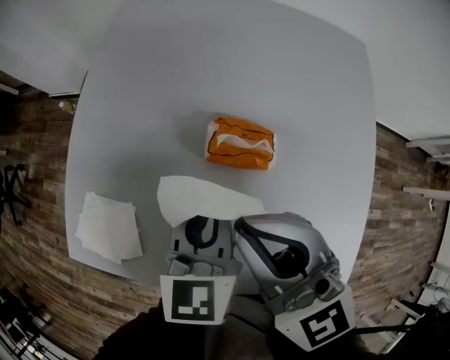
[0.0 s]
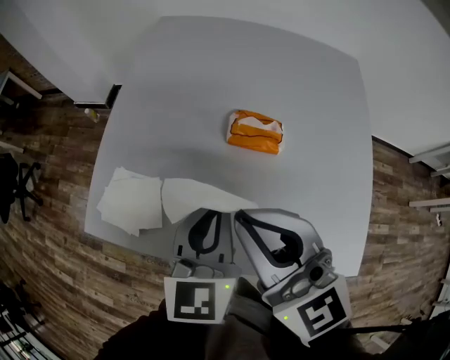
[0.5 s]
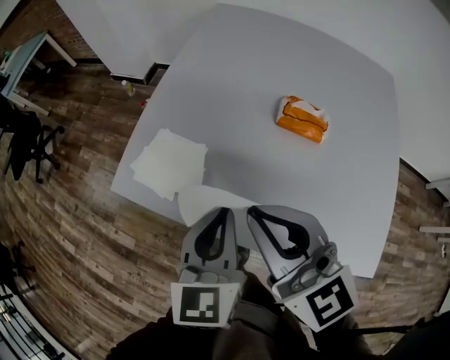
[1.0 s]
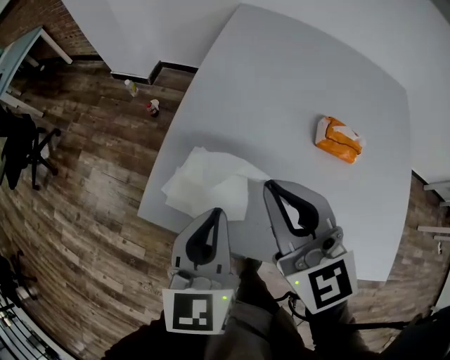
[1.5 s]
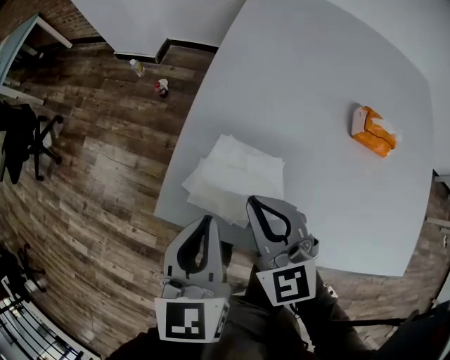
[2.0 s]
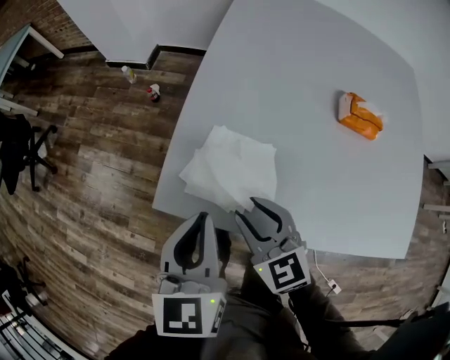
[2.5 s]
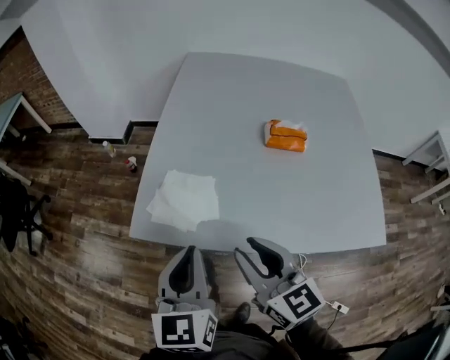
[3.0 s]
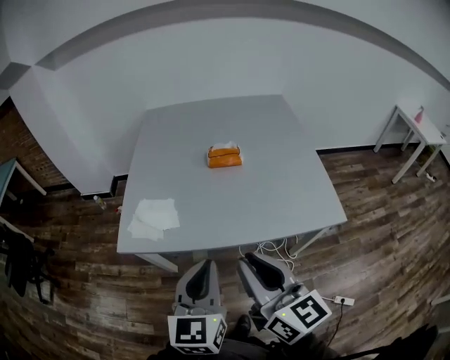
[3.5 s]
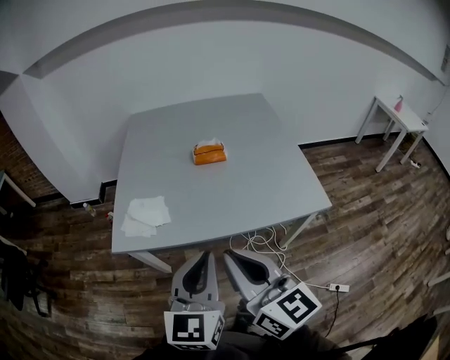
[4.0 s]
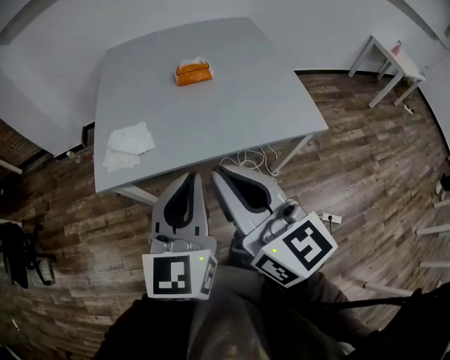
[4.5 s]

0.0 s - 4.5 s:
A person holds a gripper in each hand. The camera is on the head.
0.0 s - 2.0 s: The right gripper travels to the left and downward by approximately 35 cm. The left gripper is displaced to the left by about 40 cm.
2.0 s - 4.5 s: The right gripper ends up some 50 cm from where it was, changes its angle by approximately 50 degrees, and opens and closes again, while the left gripper shifts by some 40 cm, and turns by roughly 40 degrees.

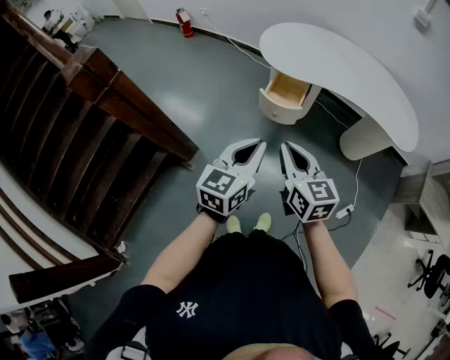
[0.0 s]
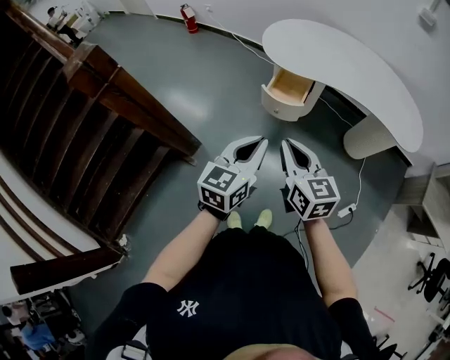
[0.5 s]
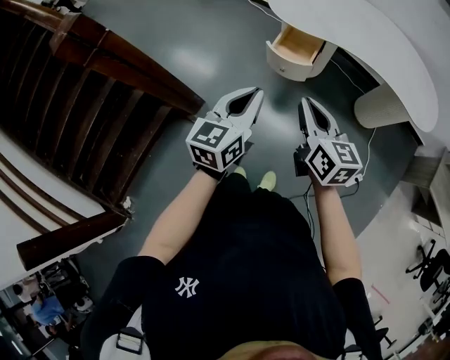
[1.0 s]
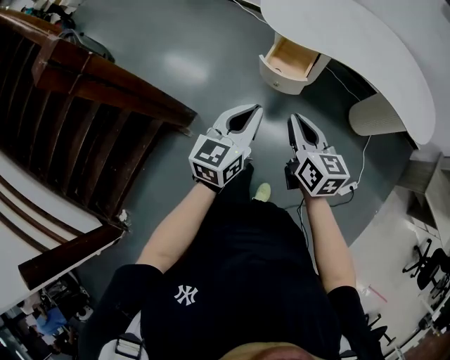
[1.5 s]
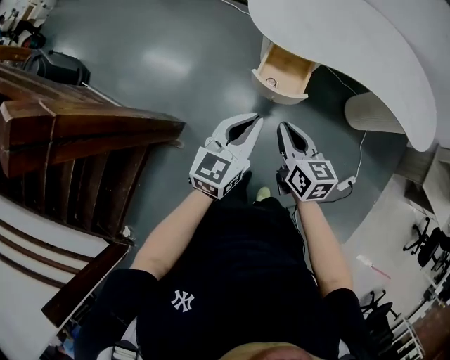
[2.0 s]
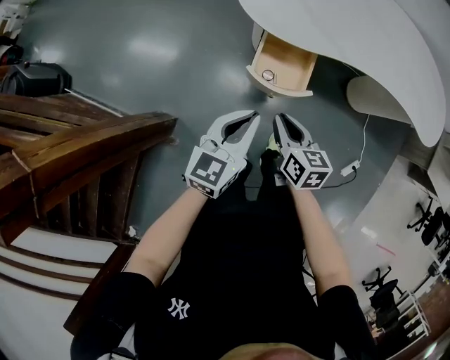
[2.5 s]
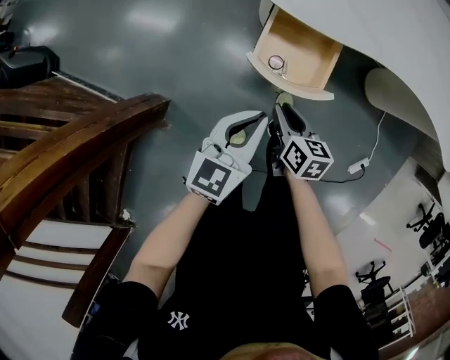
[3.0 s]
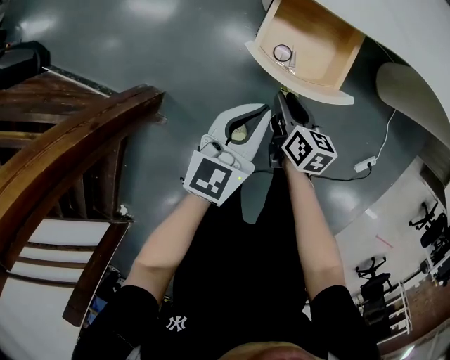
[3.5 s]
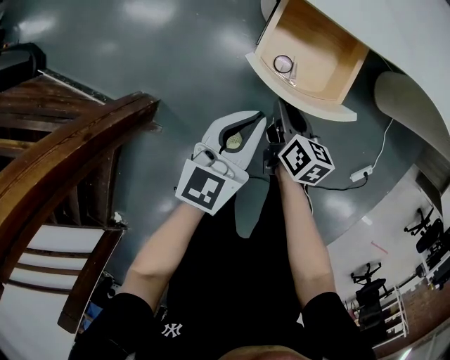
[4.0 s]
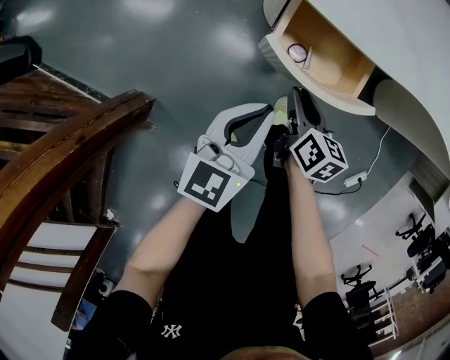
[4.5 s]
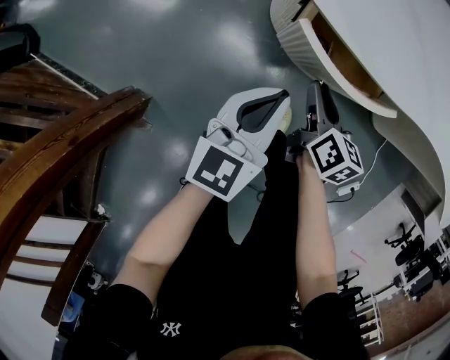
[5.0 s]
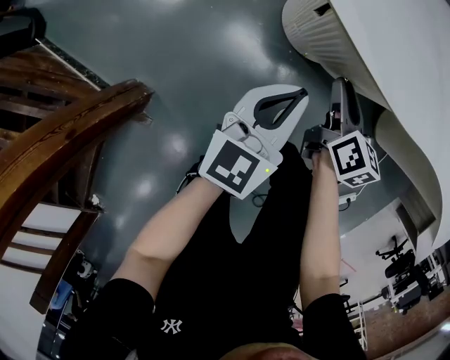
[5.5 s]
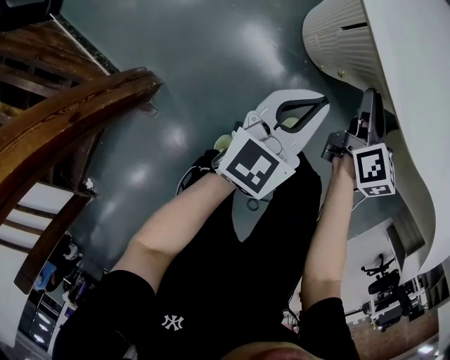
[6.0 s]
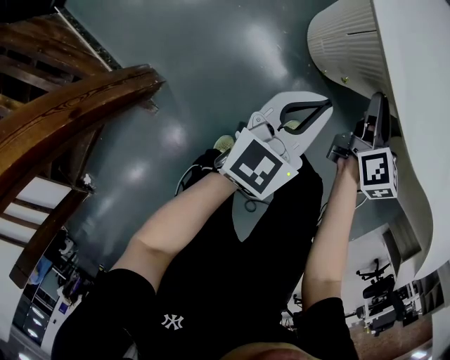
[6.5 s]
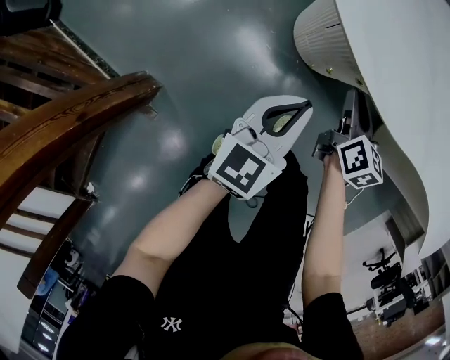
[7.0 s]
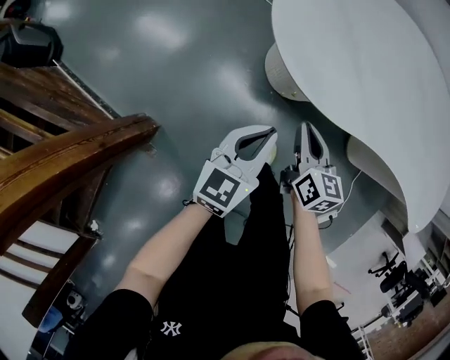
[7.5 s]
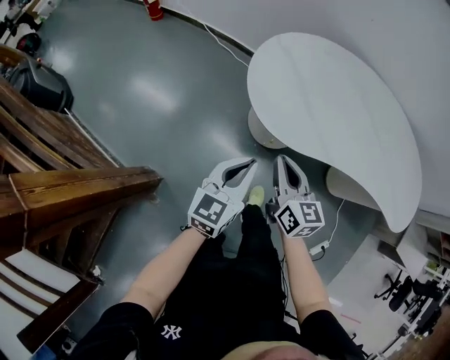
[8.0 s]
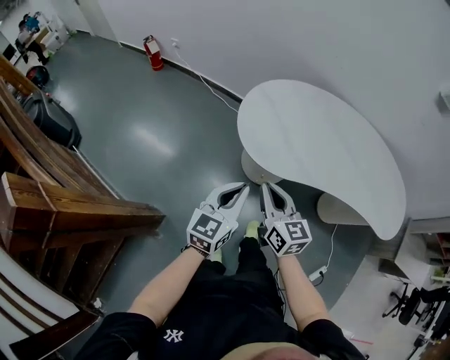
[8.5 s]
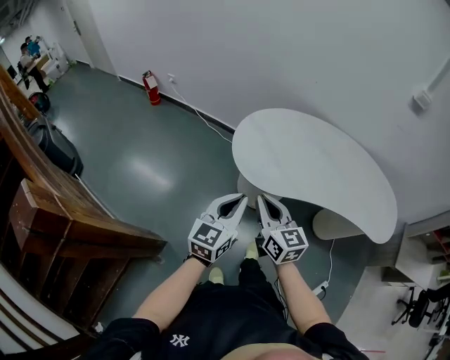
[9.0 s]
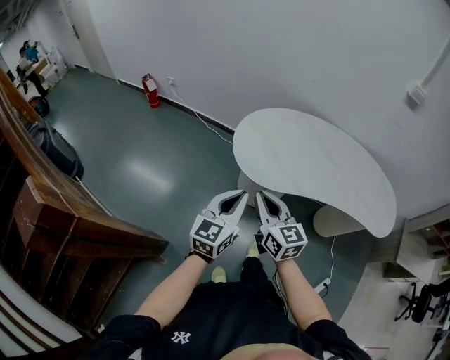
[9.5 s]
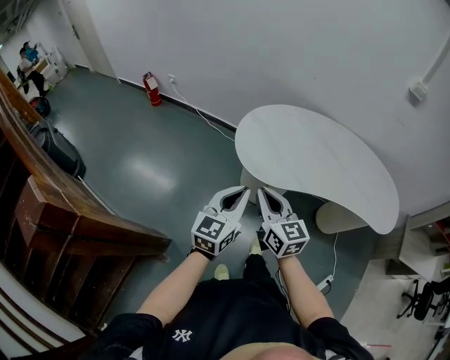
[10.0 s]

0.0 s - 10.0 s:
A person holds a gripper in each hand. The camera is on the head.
0.0 s - 2.0 s: Both grippers move forward and downward, approximately 25 cm.
2.0 s - 4.0 s: The right gripper heads downward, covering about 35 cm, swivels roughly 30 degrees, and opens up, while the left gripper heads downward and forward, covering roughly 35 cm.
4.0 s - 6.0 s: Both grippers travel together forward, approximately 20 cm.
6.0 s - 8.0 s: The right gripper shifts approximately 35 cm upward and backward, turns by some 20 degrees, and closes up, while the left gripper heads upward, covering some 25 cm.
8.0 s - 10.0 s: The grippers both shift upward and backward by some 20 cm.

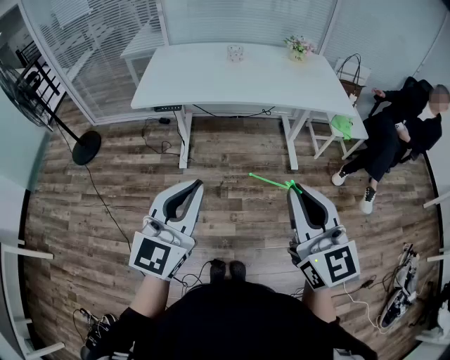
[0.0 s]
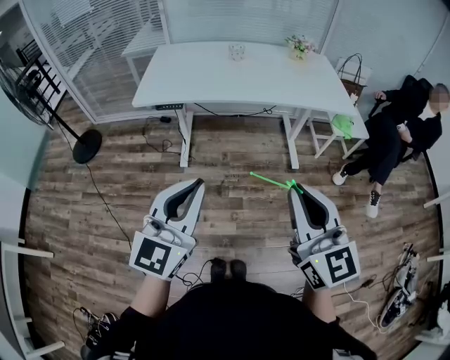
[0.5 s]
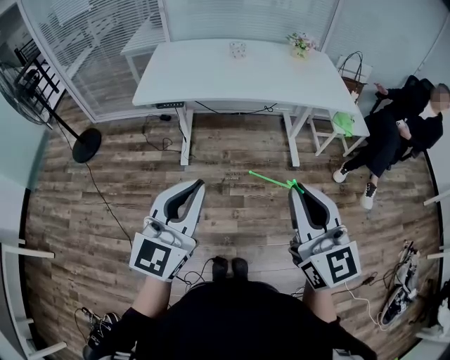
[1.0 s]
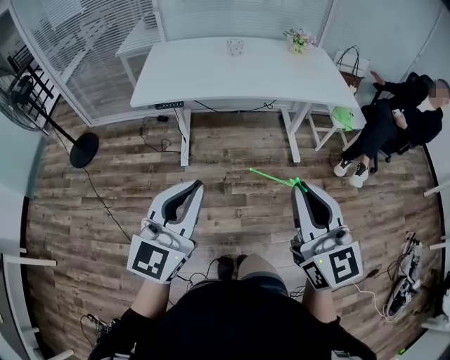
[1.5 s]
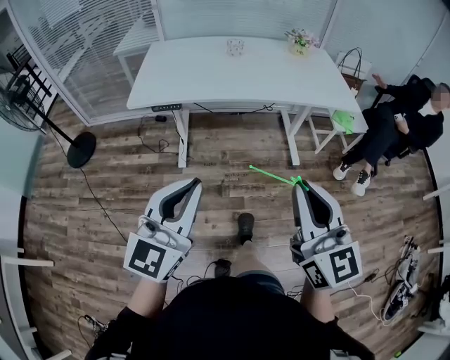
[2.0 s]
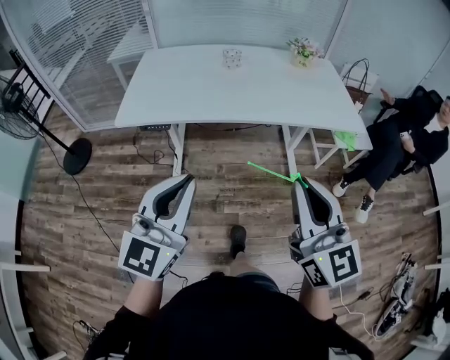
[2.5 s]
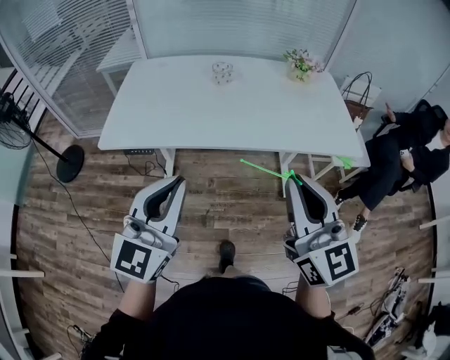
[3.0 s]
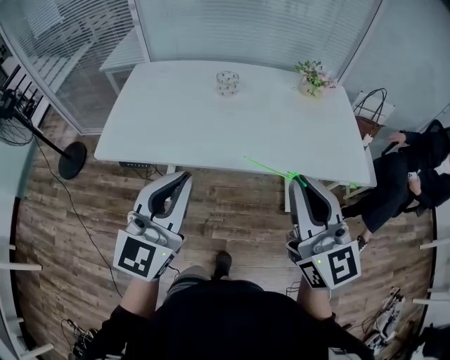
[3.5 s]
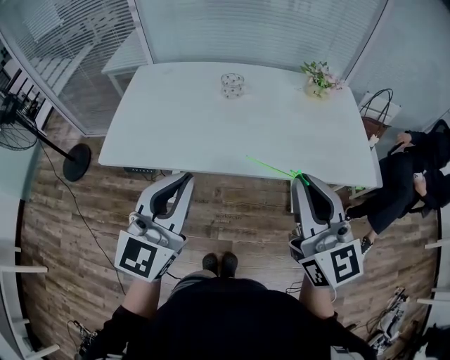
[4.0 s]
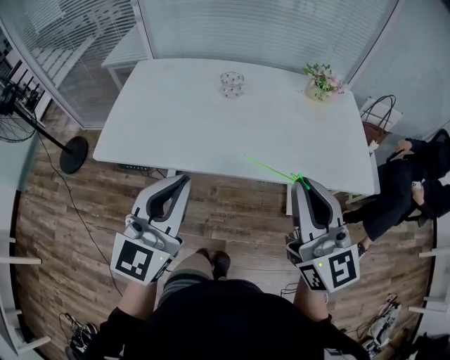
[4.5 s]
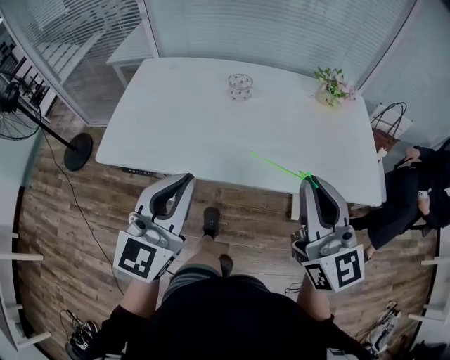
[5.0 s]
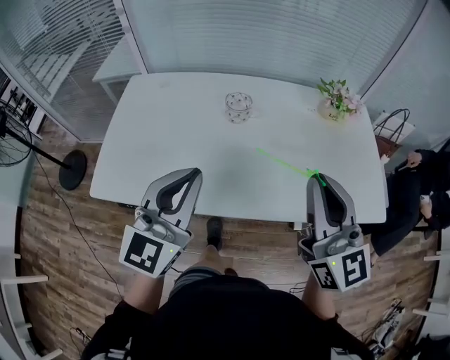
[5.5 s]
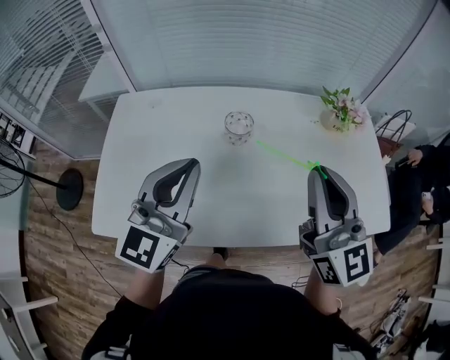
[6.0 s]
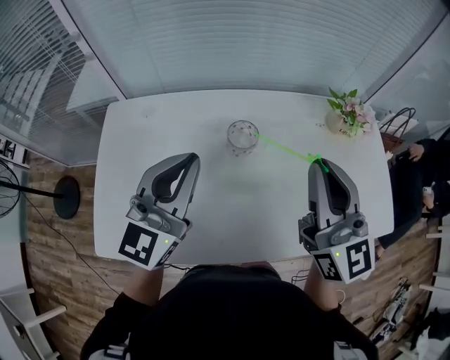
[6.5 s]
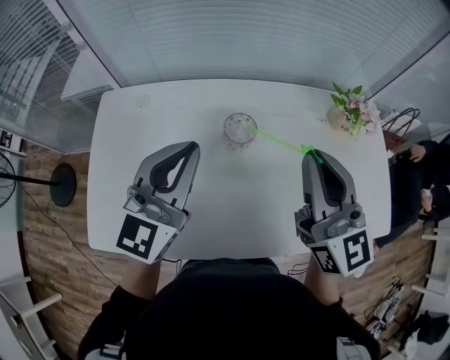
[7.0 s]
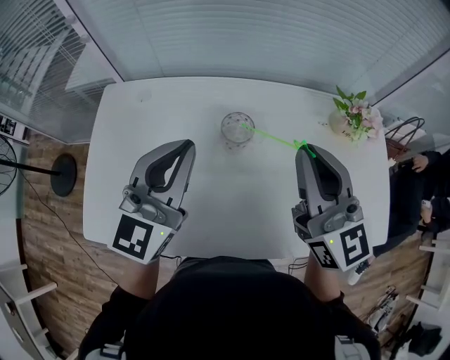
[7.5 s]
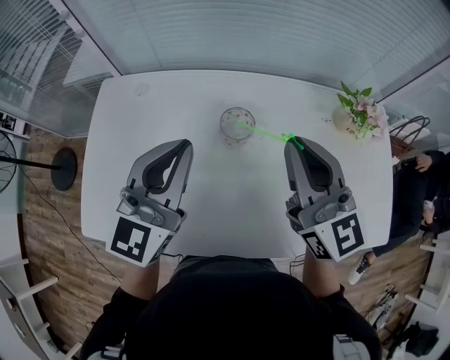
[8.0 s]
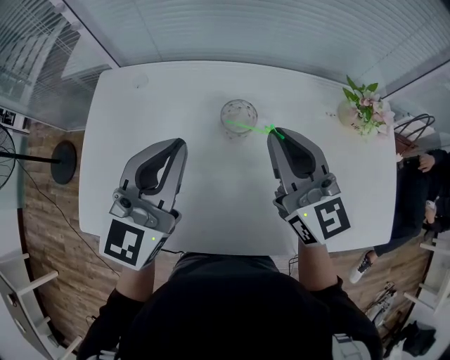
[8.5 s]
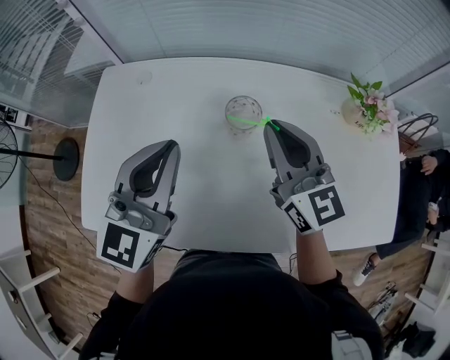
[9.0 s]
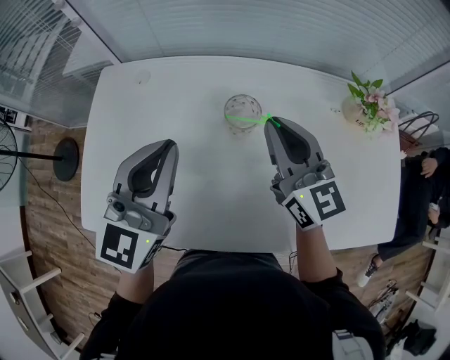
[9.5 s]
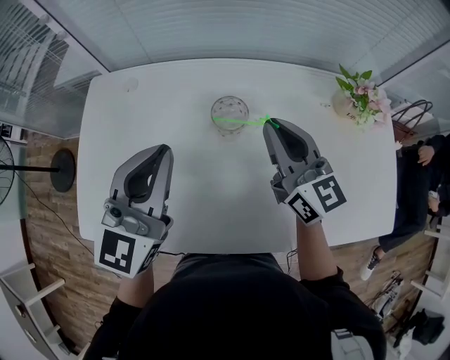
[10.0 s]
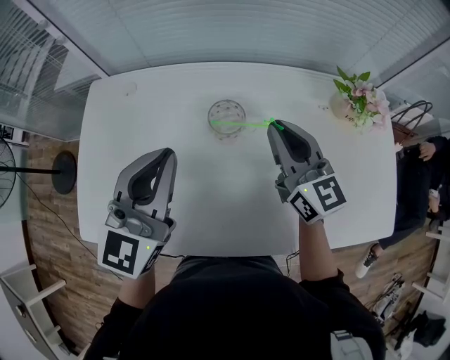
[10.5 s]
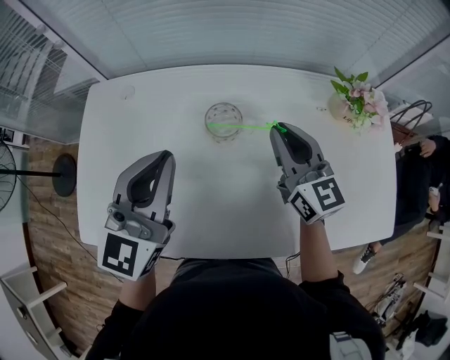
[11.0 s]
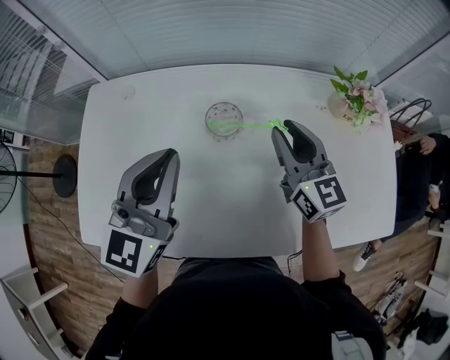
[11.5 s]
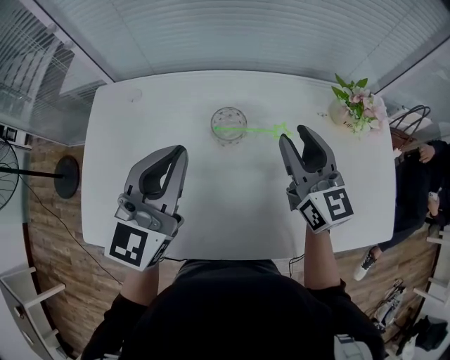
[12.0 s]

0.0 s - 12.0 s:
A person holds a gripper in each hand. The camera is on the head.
0.0 s - 2.0 s: The grippers make only small movements.
2.0 s - 4.0 s: Both grippers travel together forward, roughly 35 cm.
4.0 s - 6.0 s: Both grippers move forward, roughly 25 cm.
6.0 s - 8.0 s: The two grippers go approximately 10 cm forward.
8.0 s - 10.0 s: The right gripper heads downward, covering approximately 10 cm.
10.0 s - 12.0 s: The right gripper goes some 5 cm to the right, and opens.
